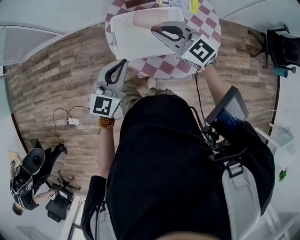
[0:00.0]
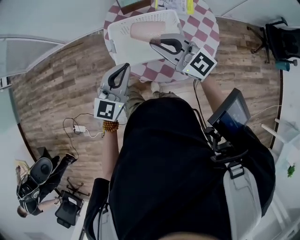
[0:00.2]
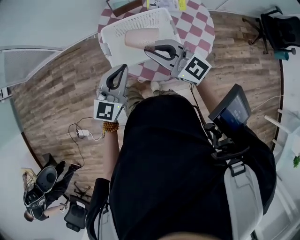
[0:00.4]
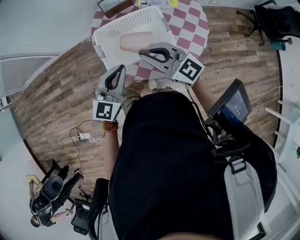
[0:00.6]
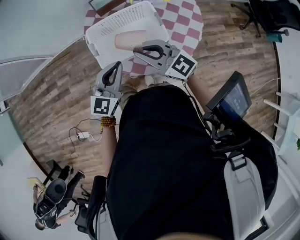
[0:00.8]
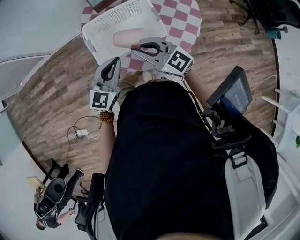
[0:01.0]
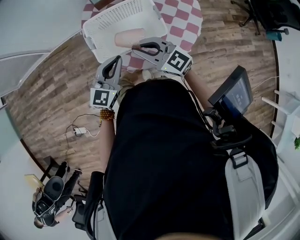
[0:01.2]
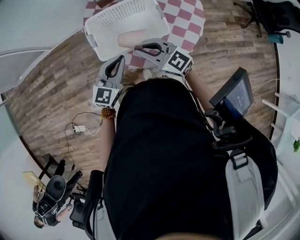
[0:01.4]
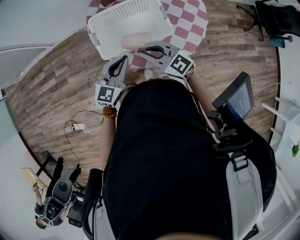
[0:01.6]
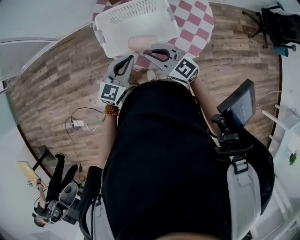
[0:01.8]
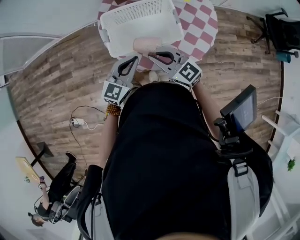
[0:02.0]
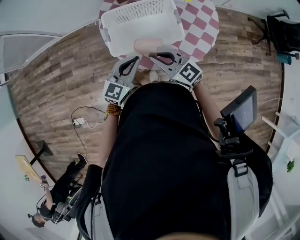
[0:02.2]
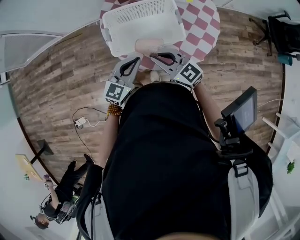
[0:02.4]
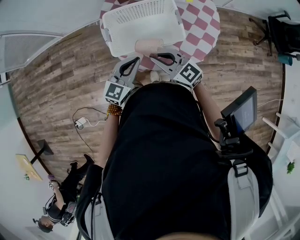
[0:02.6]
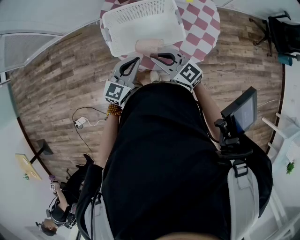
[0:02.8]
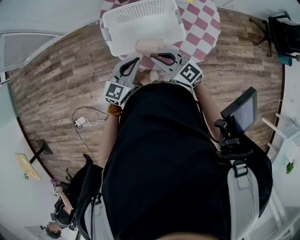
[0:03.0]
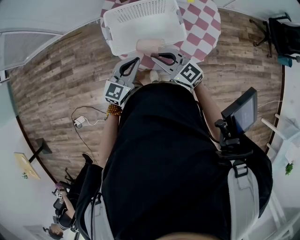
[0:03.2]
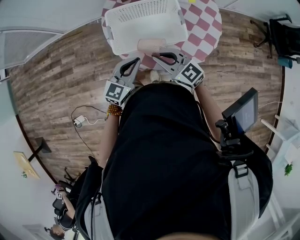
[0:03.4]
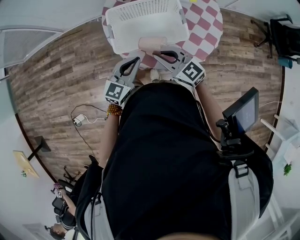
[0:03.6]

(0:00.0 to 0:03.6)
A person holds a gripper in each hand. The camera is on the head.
0:00.0 - 0:01.8: The left gripper moves downward, approximately 10 cm. The right gripper moves downward and backward, about 15 cm.
0:01.8 - 0:03.6: The grippers make only small movements.

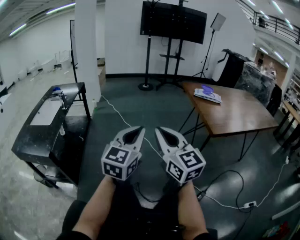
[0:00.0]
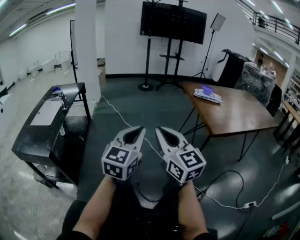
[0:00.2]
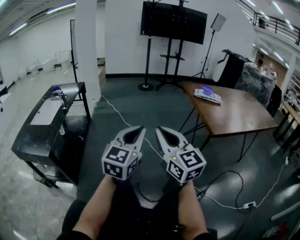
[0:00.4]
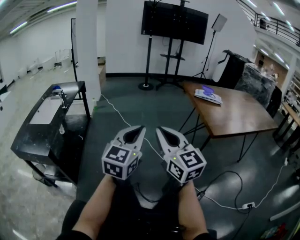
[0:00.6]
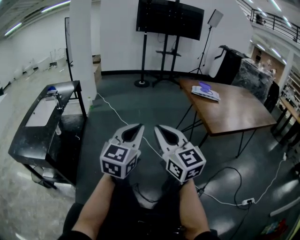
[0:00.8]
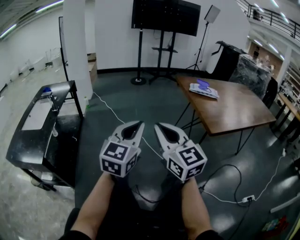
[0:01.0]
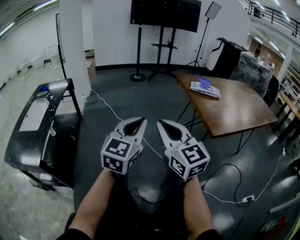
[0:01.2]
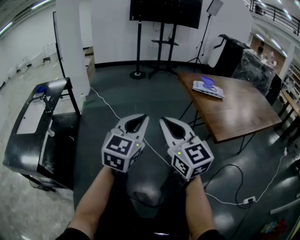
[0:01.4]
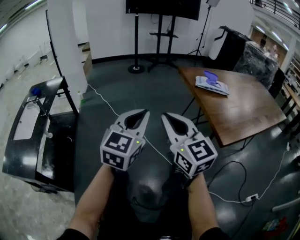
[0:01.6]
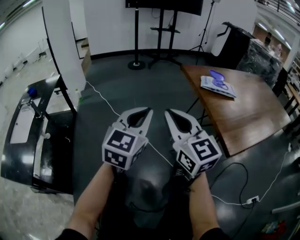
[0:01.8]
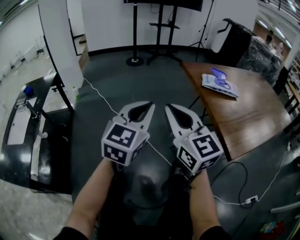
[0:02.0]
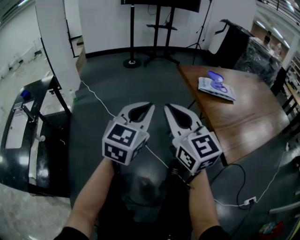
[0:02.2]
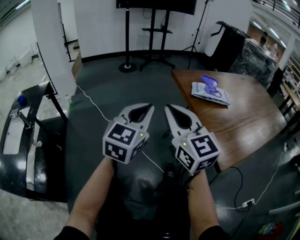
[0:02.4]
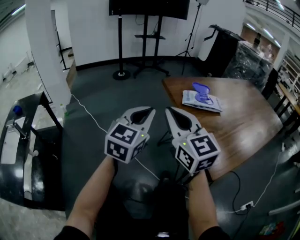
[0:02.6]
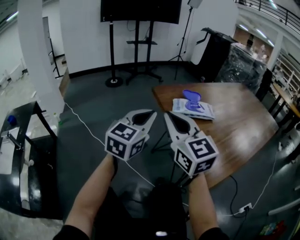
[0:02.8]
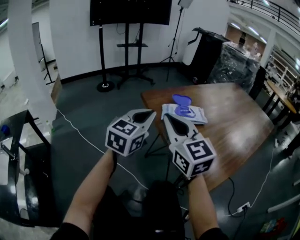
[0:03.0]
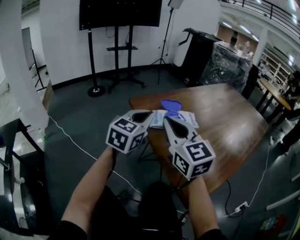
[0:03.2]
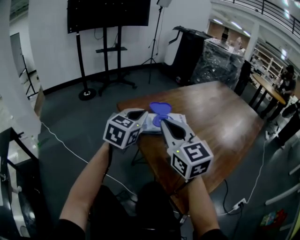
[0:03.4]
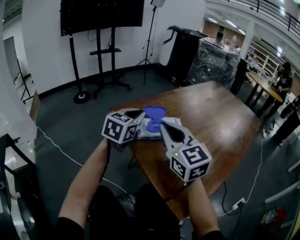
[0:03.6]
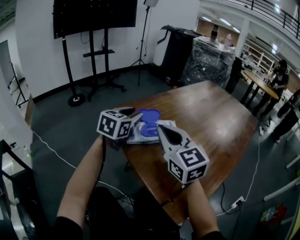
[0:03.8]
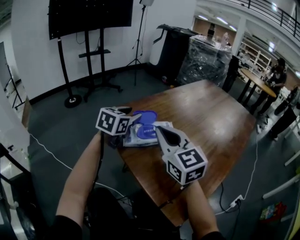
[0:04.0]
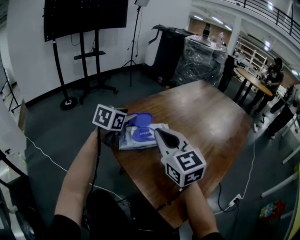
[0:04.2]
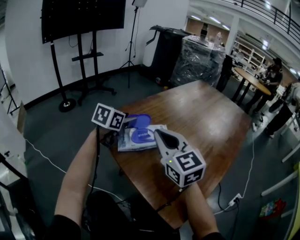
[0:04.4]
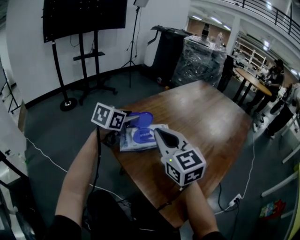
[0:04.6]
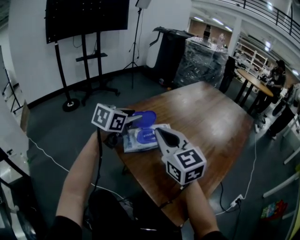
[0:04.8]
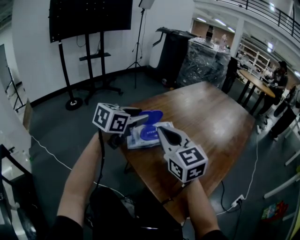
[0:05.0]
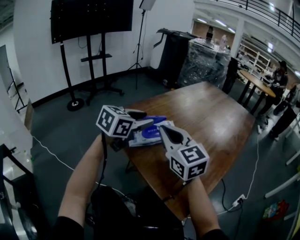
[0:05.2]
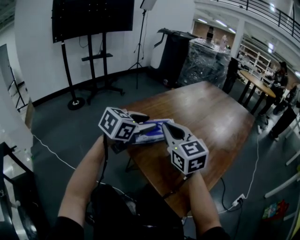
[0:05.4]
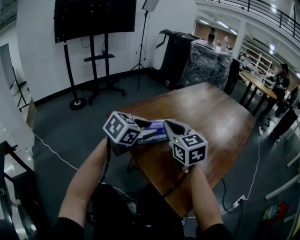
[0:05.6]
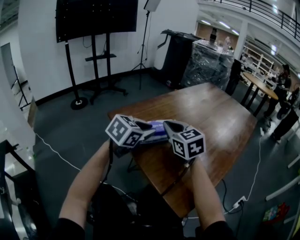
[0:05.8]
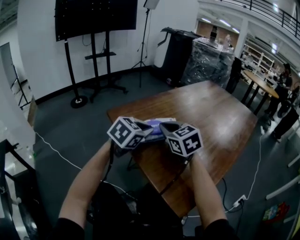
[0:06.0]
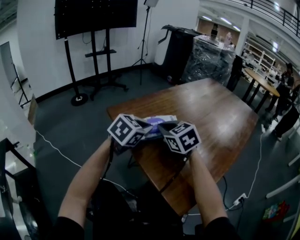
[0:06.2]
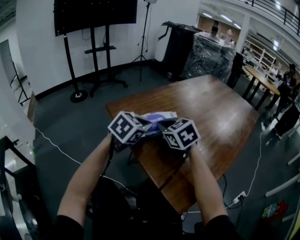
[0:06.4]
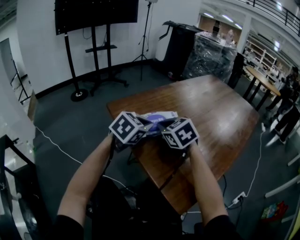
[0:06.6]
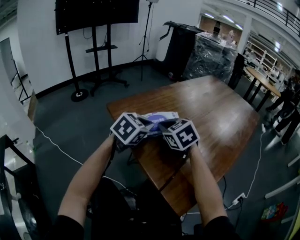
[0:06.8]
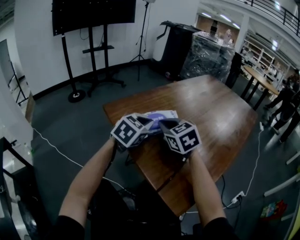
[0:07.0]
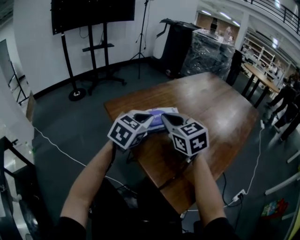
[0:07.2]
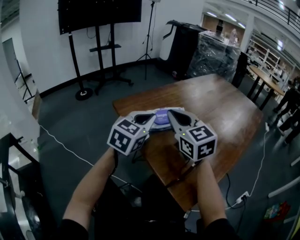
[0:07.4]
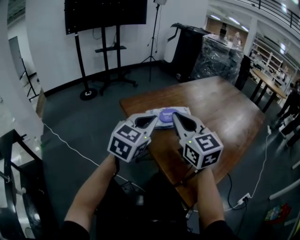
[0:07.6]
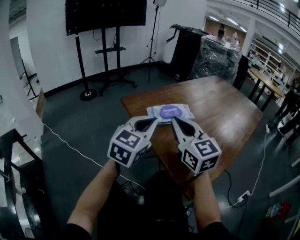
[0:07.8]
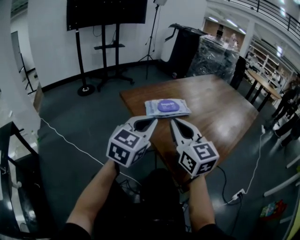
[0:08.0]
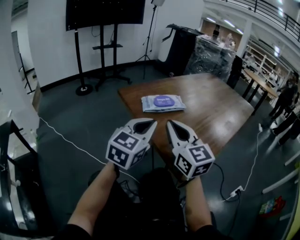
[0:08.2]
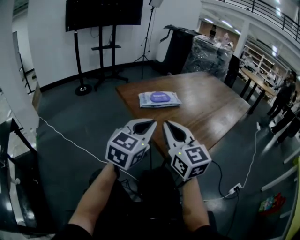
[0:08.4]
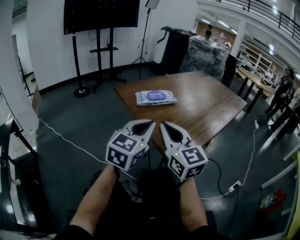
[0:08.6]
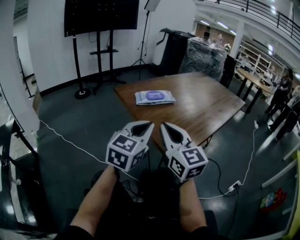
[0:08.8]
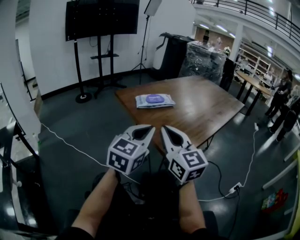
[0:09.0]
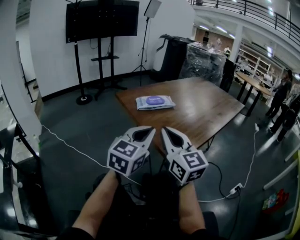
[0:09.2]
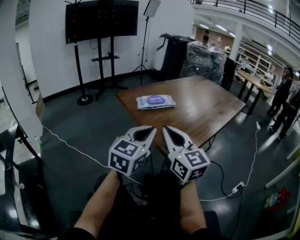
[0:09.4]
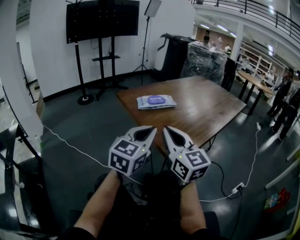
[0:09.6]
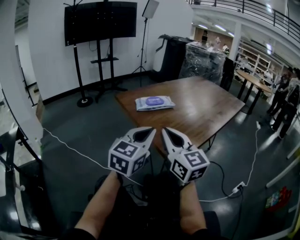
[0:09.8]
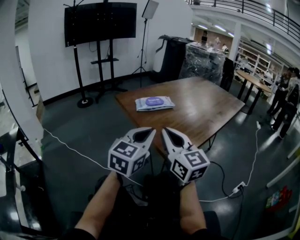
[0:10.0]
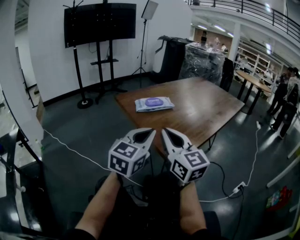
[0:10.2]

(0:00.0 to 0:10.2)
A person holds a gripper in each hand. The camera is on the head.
0:00.0 - 0:01.4: Both grippers move forward, approximately 10 cm.
0:01.4 - 0:03.0: The grippers both shift forward and to the right by some 35 cm. The left gripper turns by approximately 20 degrees.
0:03.0 - 0:04.4: The left gripper is displaced forward by some 20 cm, swivels roughly 30 degrees, and opens up. The right gripper heads to the right and forward, covering about 15 cm.
0:04.4 - 0:05.8: The right gripper moves roughly 5 cm. Meanwhile the left gripper moves backward and to the right, some 15 cm, and closes up.
0:07.2 - 0:08.8: Both grippers travel together backward, some 25 cm. The right gripper rotates roughly 20 degrees.
0:08.8 - 0:10.2: The grippers stay close to where they were, moving slightly.

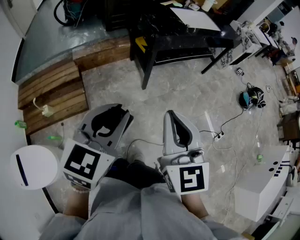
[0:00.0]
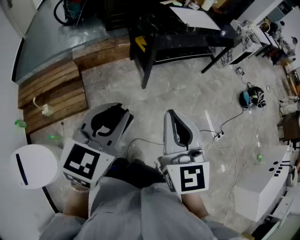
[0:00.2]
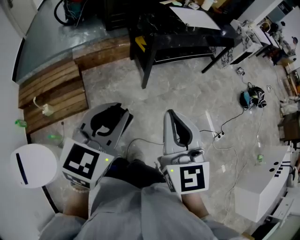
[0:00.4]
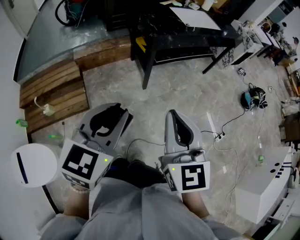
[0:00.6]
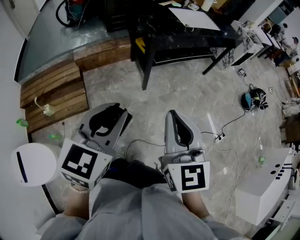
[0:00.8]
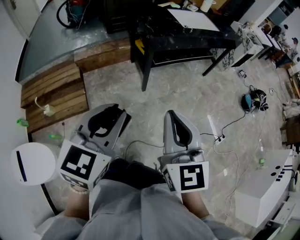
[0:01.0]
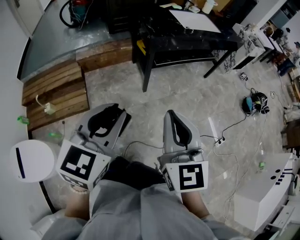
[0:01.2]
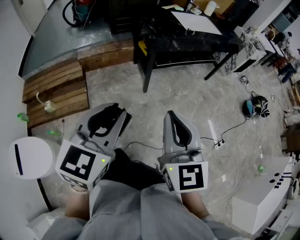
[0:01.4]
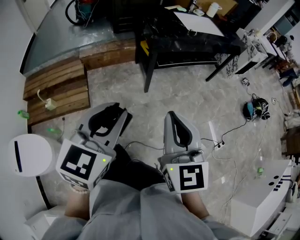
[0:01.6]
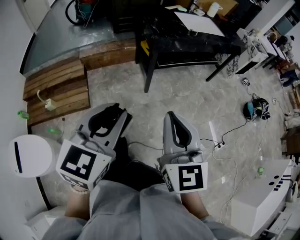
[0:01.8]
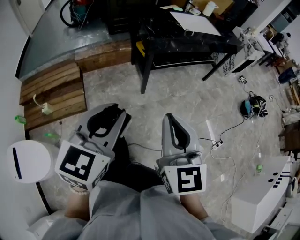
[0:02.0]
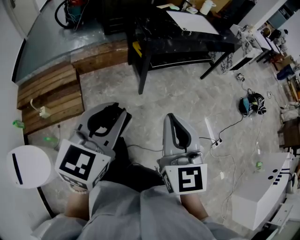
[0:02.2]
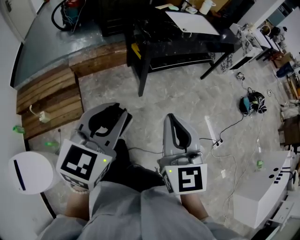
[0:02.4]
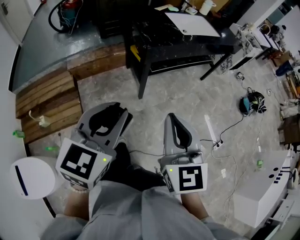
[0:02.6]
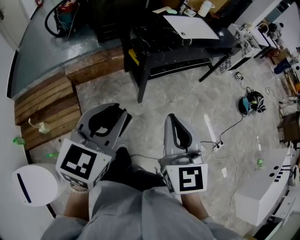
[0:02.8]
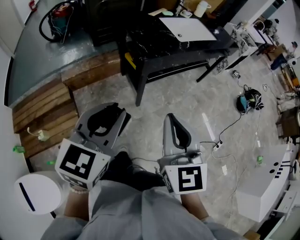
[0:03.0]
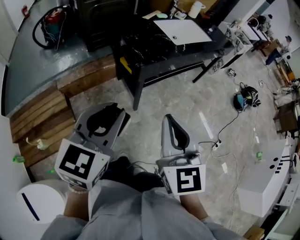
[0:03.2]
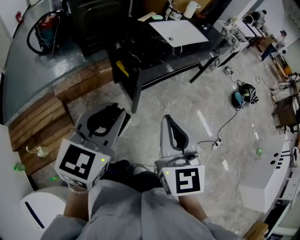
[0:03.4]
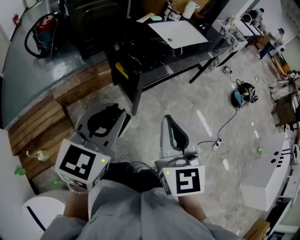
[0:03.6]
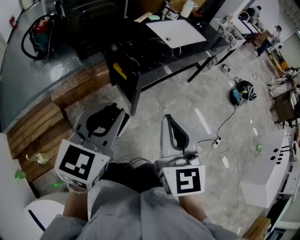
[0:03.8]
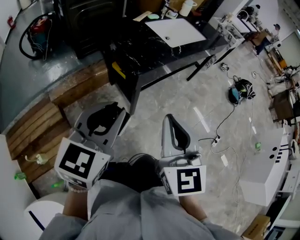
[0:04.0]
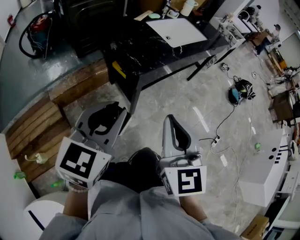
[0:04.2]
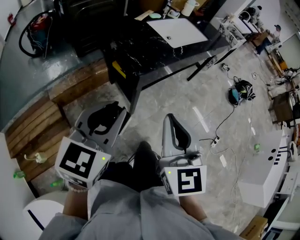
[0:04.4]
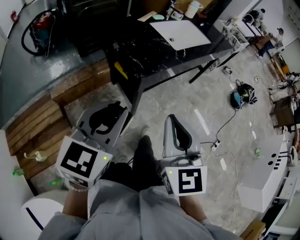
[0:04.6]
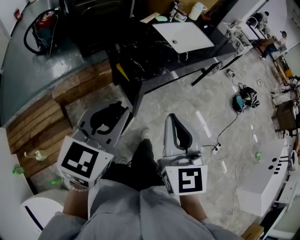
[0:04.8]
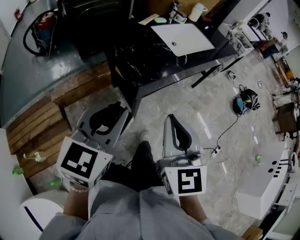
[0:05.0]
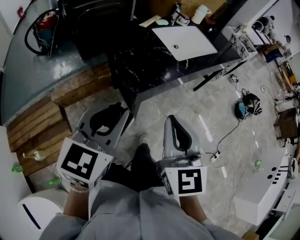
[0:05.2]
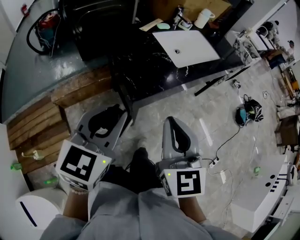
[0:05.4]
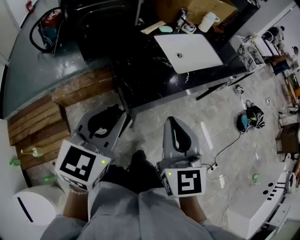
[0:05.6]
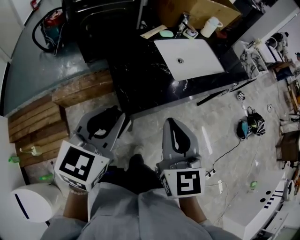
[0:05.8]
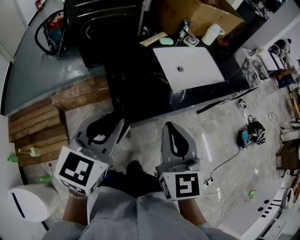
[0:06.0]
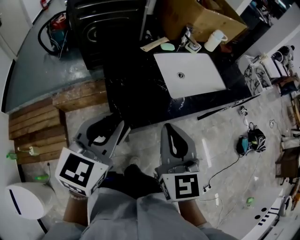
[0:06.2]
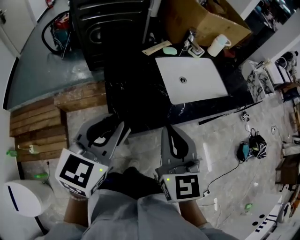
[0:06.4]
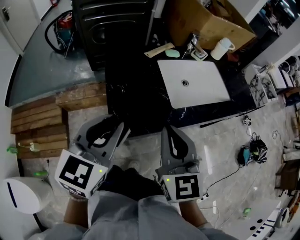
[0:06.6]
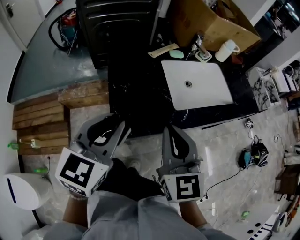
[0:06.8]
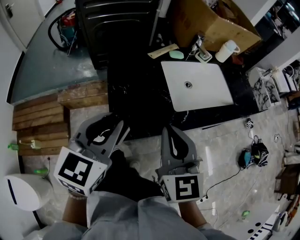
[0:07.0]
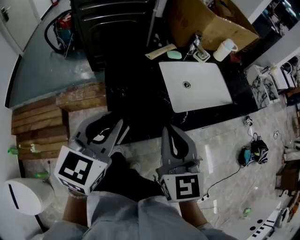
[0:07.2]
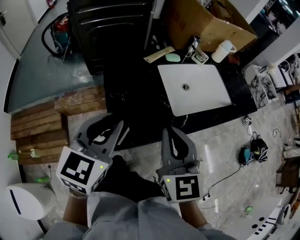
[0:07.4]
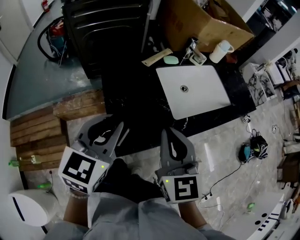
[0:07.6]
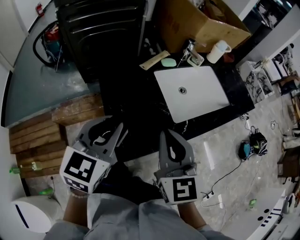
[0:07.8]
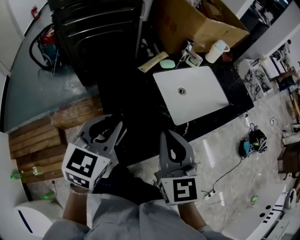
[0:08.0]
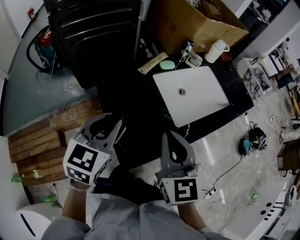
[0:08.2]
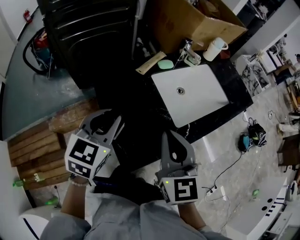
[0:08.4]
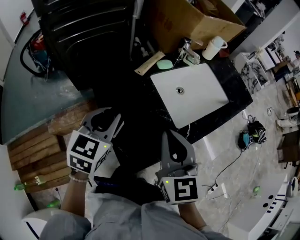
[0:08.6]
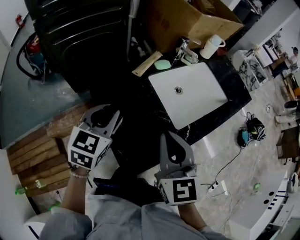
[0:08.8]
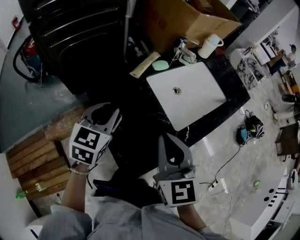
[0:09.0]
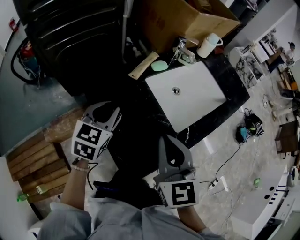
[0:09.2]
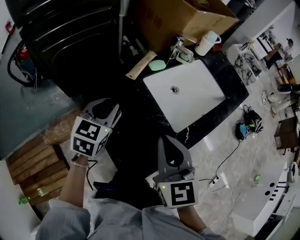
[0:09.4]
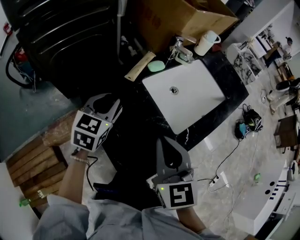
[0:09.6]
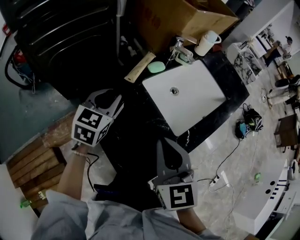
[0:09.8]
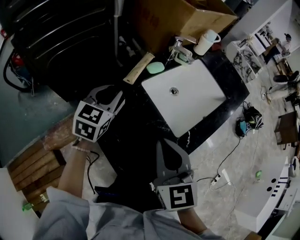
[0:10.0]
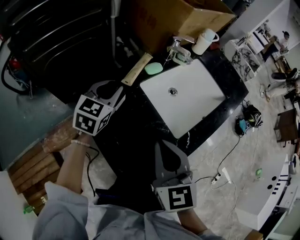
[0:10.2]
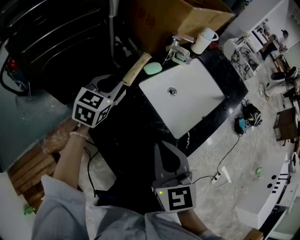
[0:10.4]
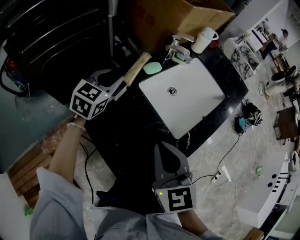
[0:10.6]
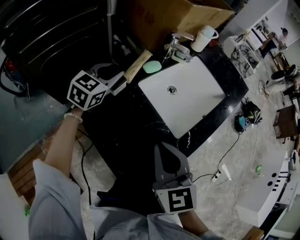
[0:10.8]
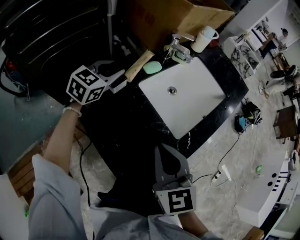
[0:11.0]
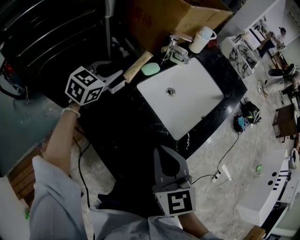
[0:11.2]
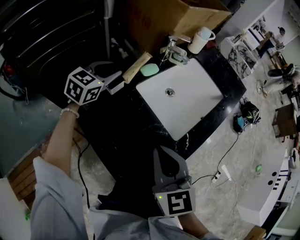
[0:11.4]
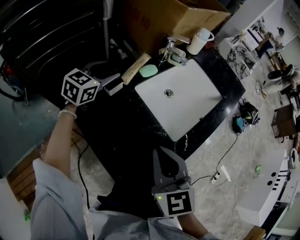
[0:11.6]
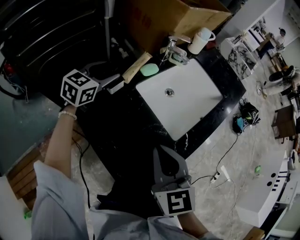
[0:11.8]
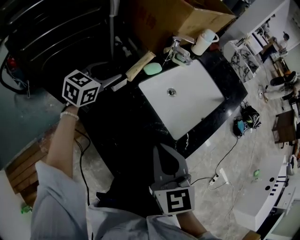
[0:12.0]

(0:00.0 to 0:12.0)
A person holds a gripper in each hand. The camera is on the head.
0:00.0 - 0:01.6: The two grippers go some 5 cm to the right.
0:01.6 - 0:03.0: The grippers both shift forward by roughly 20 cm.
0:03.0 - 0:04.4: The left gripper heads forward, covering approximately 10 cm, while the right gripper heads forward and to the left, covering approximately 10 cm.
0:04.4 - 0:06.0: Both grippers travel together forward, some 25 cm.
0:06.0 - 0:07.6: Both grippers travel together forward, some 10 cm.
0:07.6 - 0:09.0: The right gripper travels forward by roughly 5 cm, while the left gripper is displaced forward and downward by approximately 20 cm.
0:09.0 - 0:10.4: The left gripper travels forward by roughly 20 cm. The right gripper moves some 5 cm.
0:10.4 - 0:12.0: The left gripper opens its fingers.
